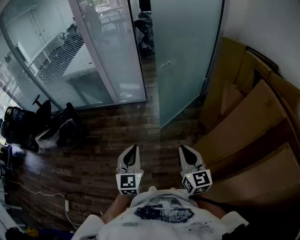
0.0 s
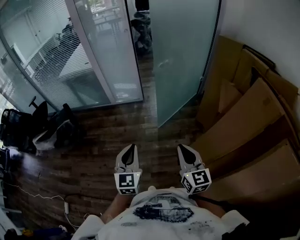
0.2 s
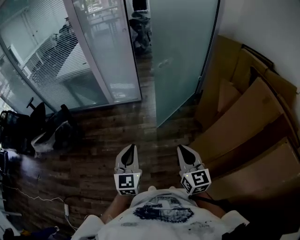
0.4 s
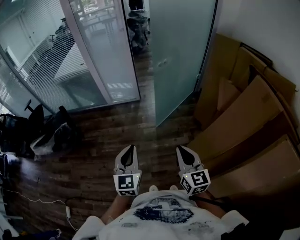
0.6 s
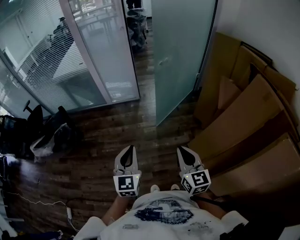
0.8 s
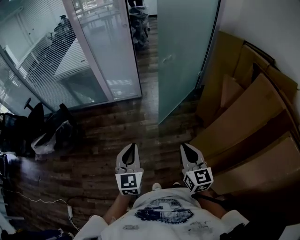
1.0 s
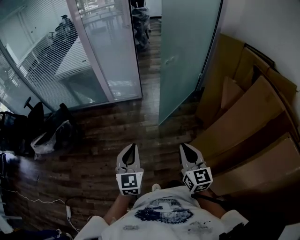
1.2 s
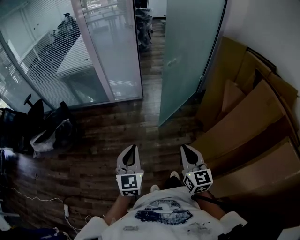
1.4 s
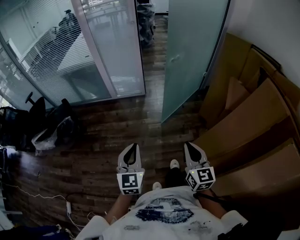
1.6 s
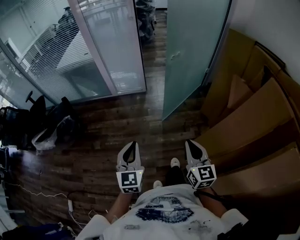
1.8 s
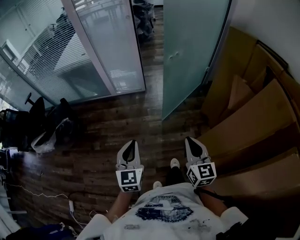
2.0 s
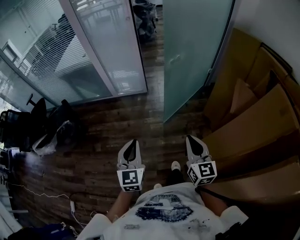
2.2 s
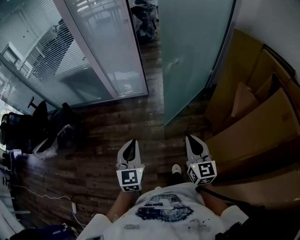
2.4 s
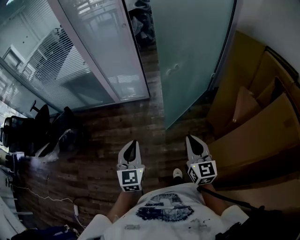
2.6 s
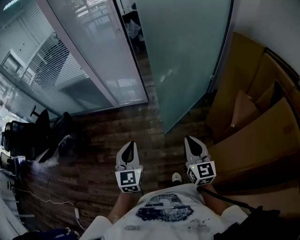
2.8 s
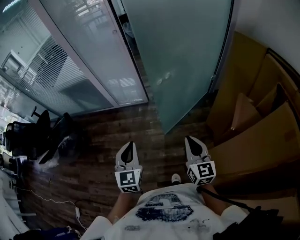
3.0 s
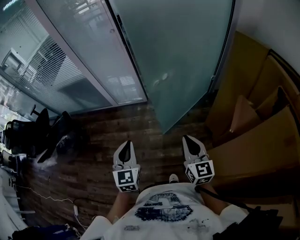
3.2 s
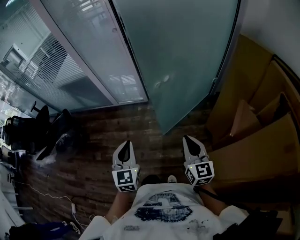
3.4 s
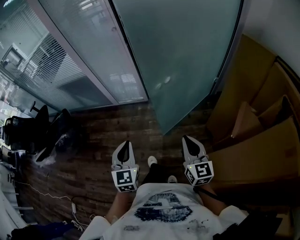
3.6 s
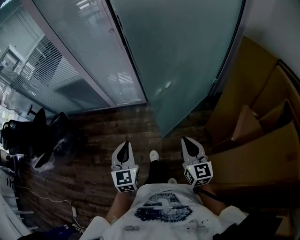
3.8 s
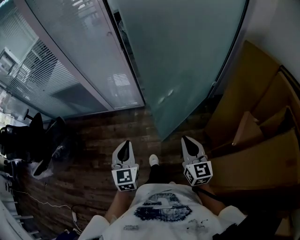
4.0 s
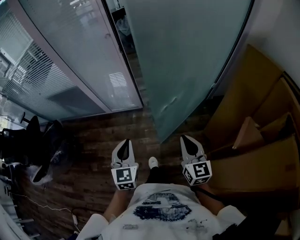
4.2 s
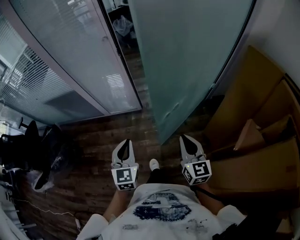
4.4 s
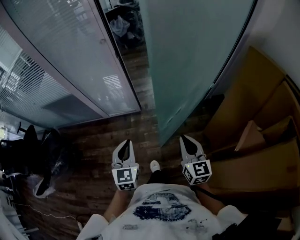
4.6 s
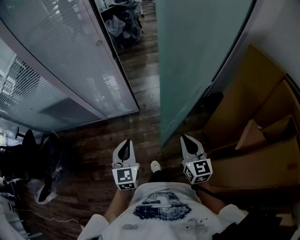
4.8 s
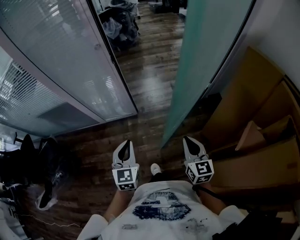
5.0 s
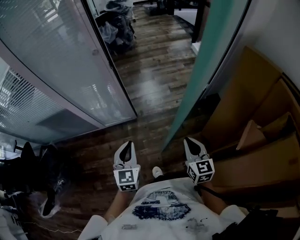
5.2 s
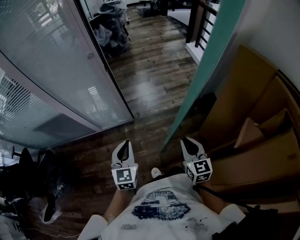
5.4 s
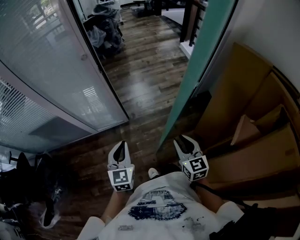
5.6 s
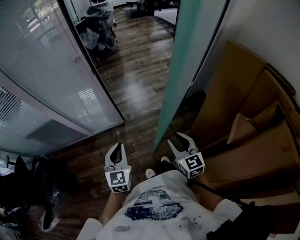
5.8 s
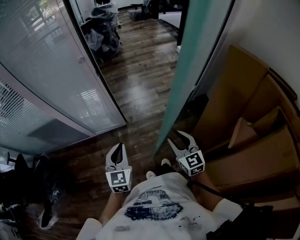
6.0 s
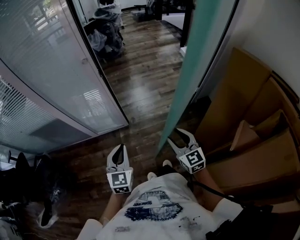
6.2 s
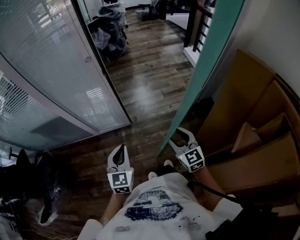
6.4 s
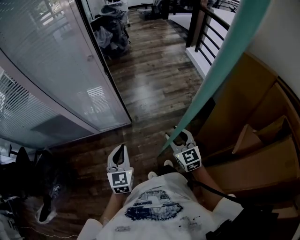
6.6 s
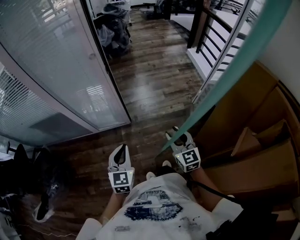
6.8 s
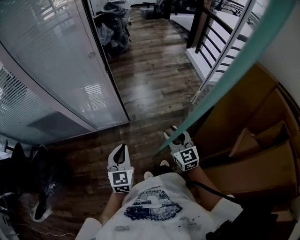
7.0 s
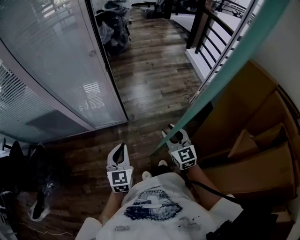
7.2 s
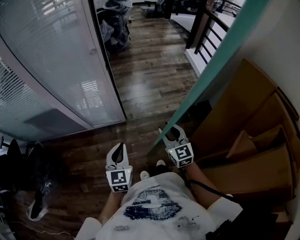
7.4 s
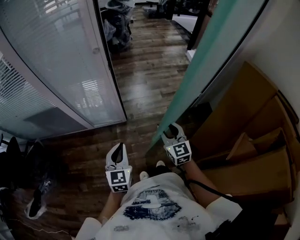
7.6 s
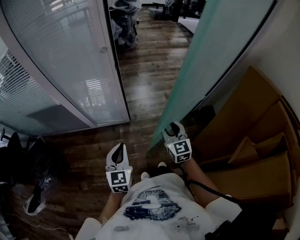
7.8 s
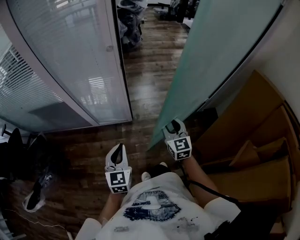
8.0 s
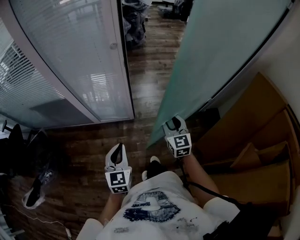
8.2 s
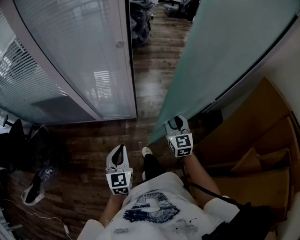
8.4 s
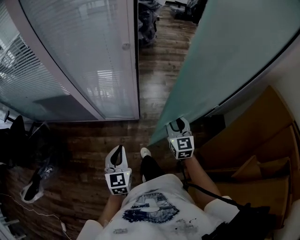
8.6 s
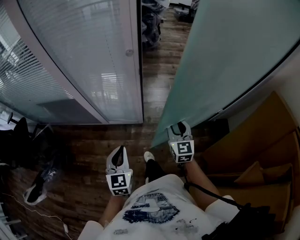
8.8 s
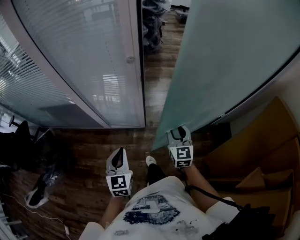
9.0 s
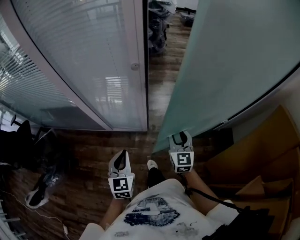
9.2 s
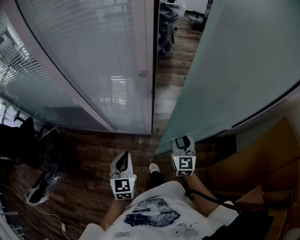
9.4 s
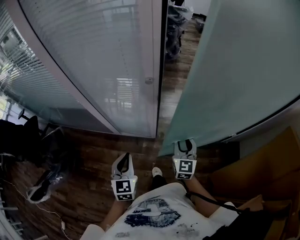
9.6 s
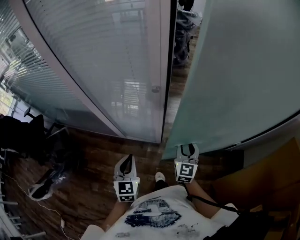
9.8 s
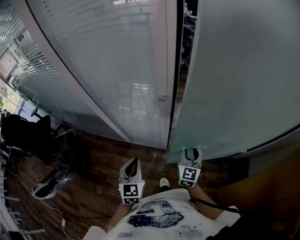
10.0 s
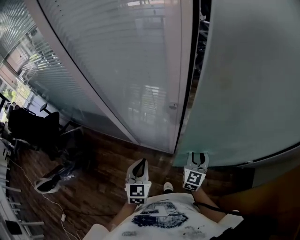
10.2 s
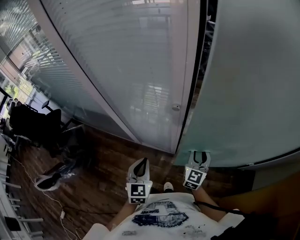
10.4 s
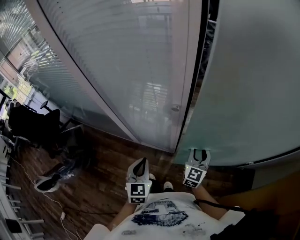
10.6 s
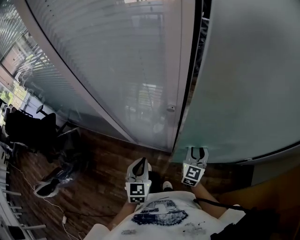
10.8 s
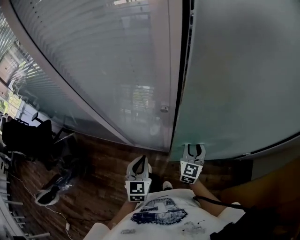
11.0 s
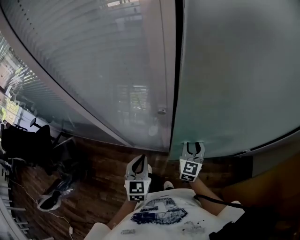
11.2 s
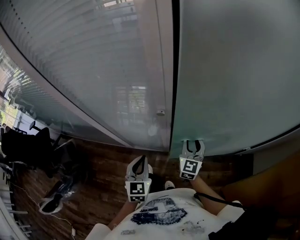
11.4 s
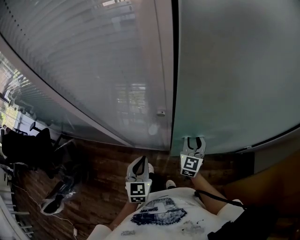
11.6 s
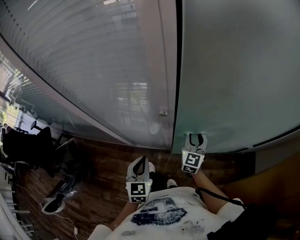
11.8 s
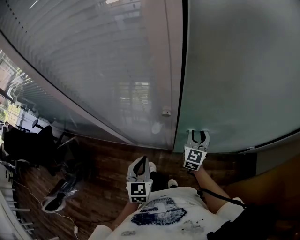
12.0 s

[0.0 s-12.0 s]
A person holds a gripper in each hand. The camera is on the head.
0.0 to 1.6 s: The two grippers go roughly 5 cm to the left.
1.6 to 3.0 s: Both grippers move forward and to the right, approximately 25 cm.
3.0 to 4.4 s: The grippers both shift forward by approximately 20 cm.
4.4 to 6.0 s: The two grippers go some 10 cm forward. The right gripper opens.
6.0 to 7.6 s: The right gripper moves forward and to the left, some 10 cm.
7.6 to 9.0 s: The right gripper goes some 15 cm forward and to the left. The left gripper shifts about 10 cm to the left and forward.
9.0 to 10.4 s: The grippers both shift forward by about 15 cm.
10.4 to 12.0 s: The left gripper is displaced forward by roughly 5 cm; the right gripper moves forward, some 10 cm.

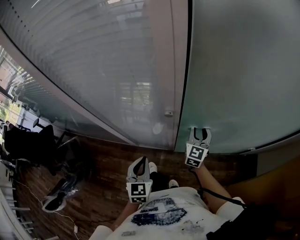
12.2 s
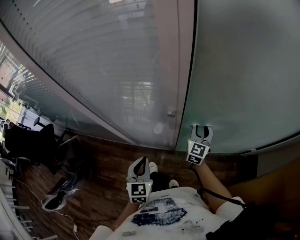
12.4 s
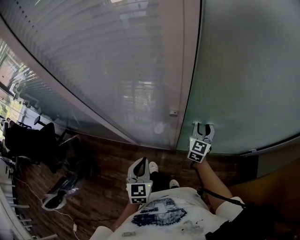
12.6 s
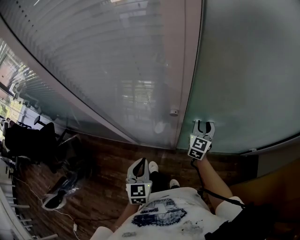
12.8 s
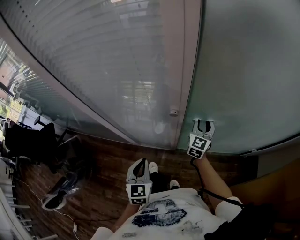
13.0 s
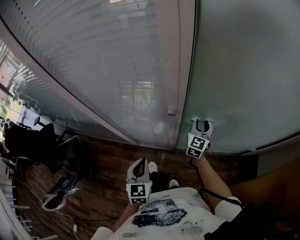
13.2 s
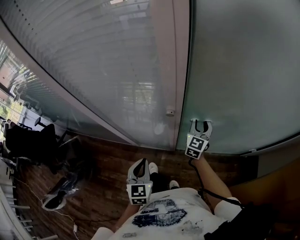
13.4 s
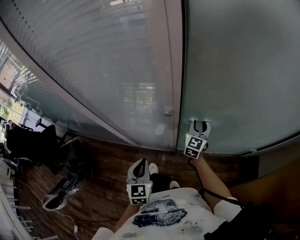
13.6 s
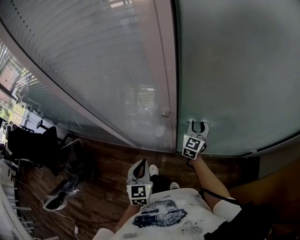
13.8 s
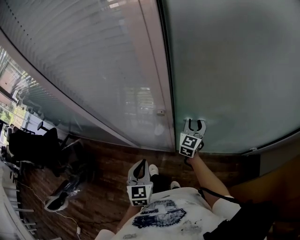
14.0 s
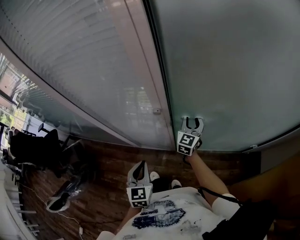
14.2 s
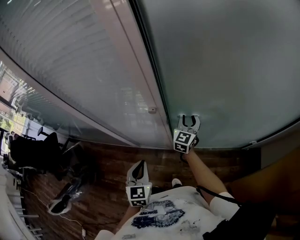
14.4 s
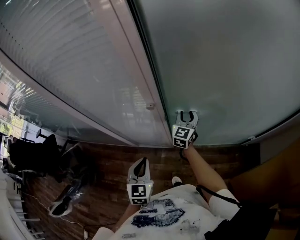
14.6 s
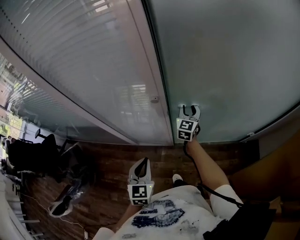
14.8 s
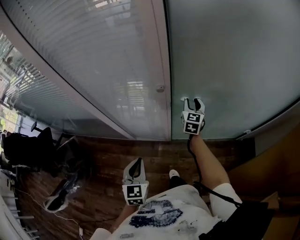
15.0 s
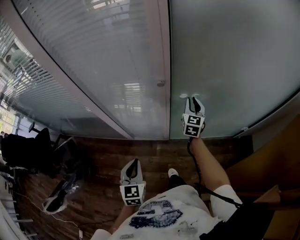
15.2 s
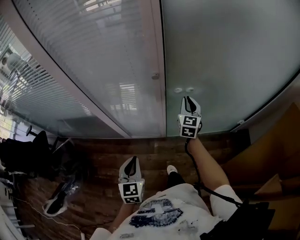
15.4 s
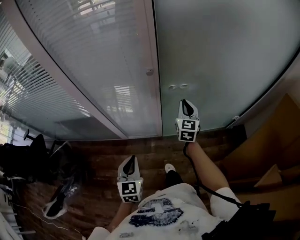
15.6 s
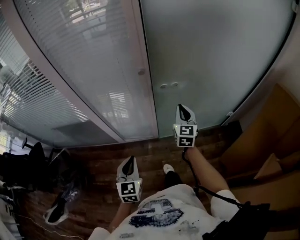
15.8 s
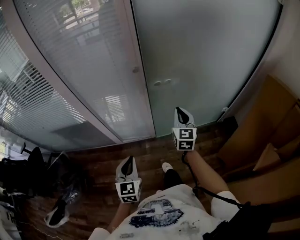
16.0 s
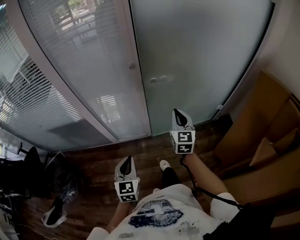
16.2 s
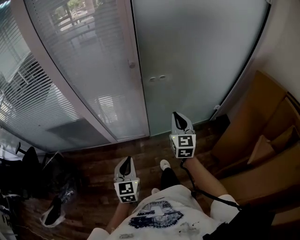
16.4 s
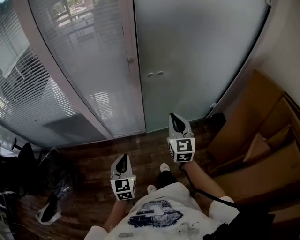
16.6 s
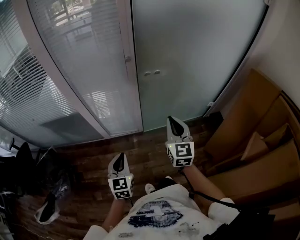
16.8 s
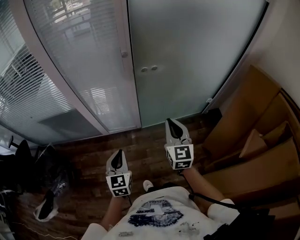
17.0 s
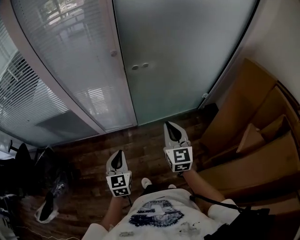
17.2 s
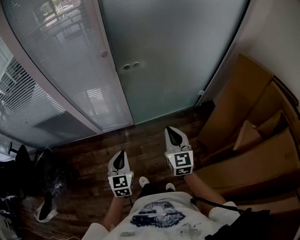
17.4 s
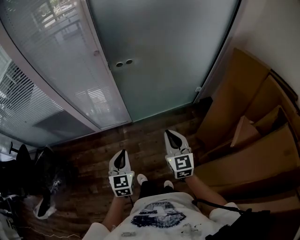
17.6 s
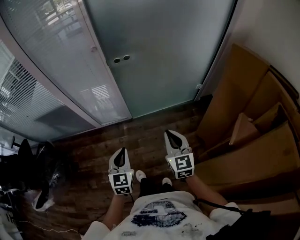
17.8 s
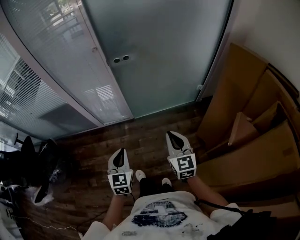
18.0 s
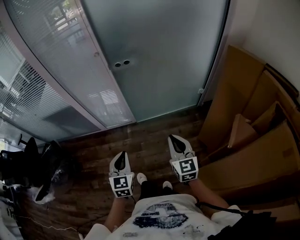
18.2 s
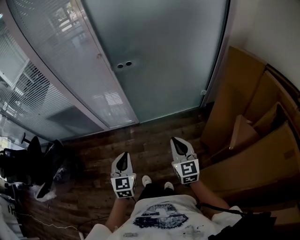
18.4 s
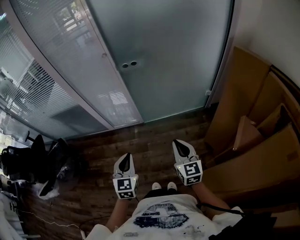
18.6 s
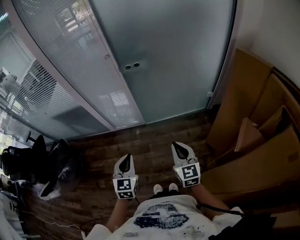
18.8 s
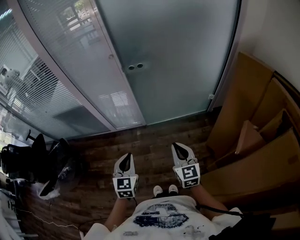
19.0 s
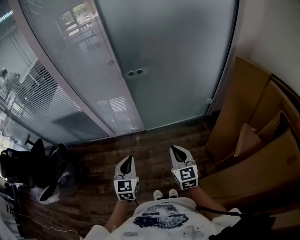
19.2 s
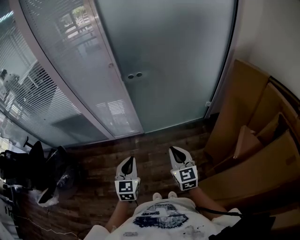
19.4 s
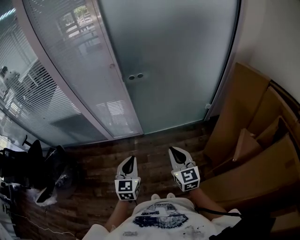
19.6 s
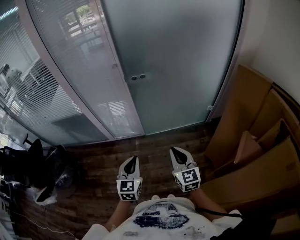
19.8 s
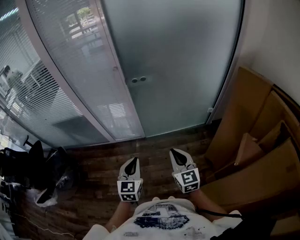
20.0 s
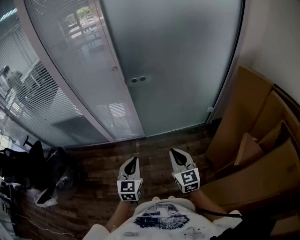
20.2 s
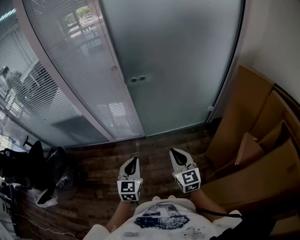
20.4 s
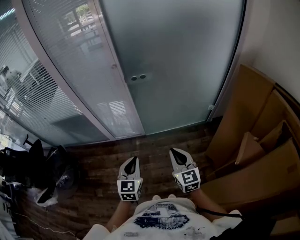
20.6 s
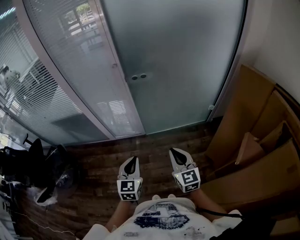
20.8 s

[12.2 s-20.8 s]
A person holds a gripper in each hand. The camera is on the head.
12.2 to 13.6 s: There are only small adjustments of the grippers.
13.6 to 15.0 s: The left gripper is displaced backward by approximately 10 cm.
15.0 to 16.6 s: The right gripper is displaced backward by approximately 35 cm, and closes; the left gripper is displaced backward by some 15 cm.
16.6 to 18.0 s: The left gripper goes some 20 cm to the right and backward. The right gripper heads backward and to the right, covering some 25 cm.
18.0 to 20.8 s: The grippers move only a little.

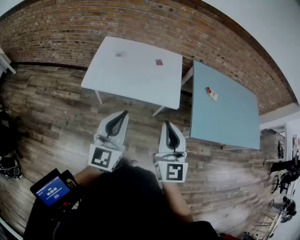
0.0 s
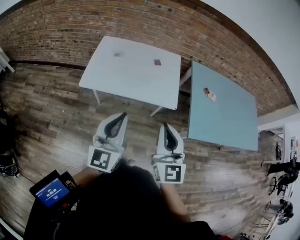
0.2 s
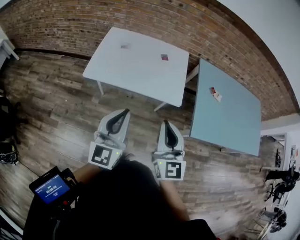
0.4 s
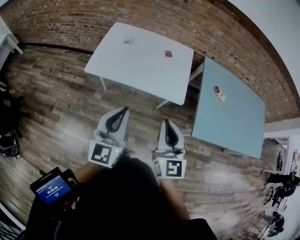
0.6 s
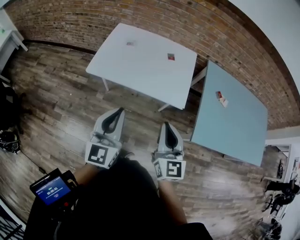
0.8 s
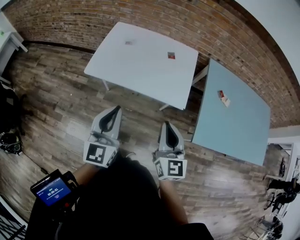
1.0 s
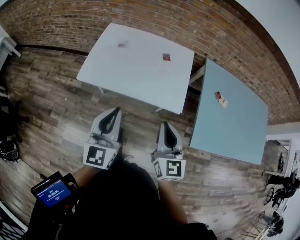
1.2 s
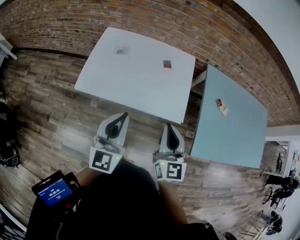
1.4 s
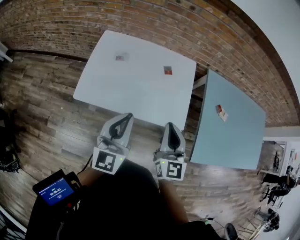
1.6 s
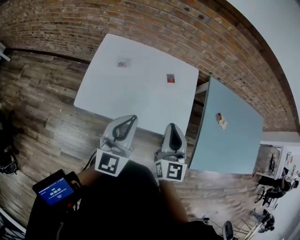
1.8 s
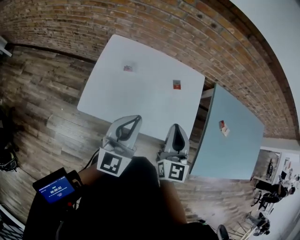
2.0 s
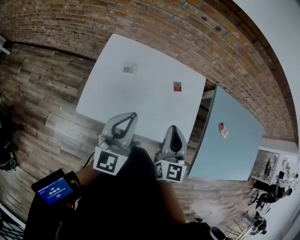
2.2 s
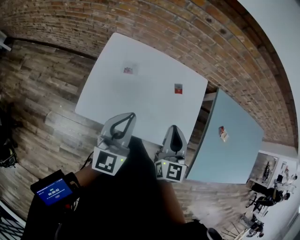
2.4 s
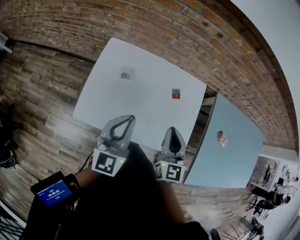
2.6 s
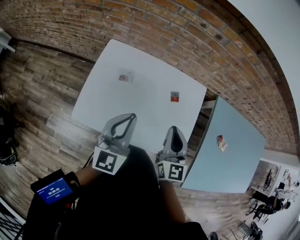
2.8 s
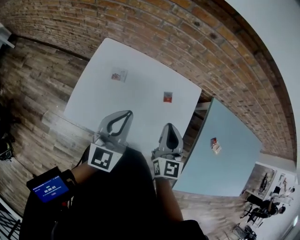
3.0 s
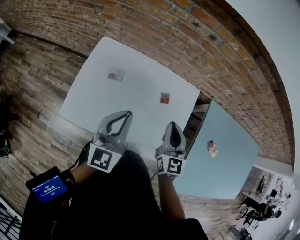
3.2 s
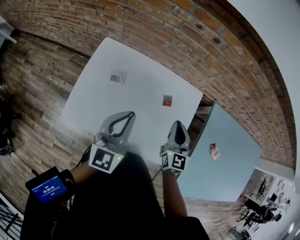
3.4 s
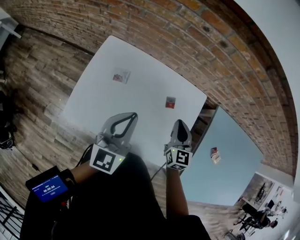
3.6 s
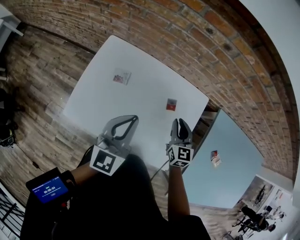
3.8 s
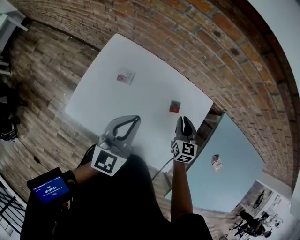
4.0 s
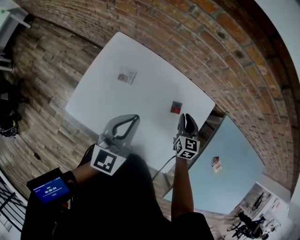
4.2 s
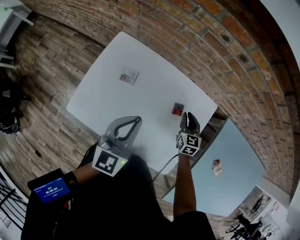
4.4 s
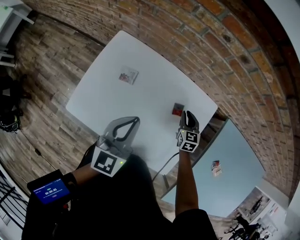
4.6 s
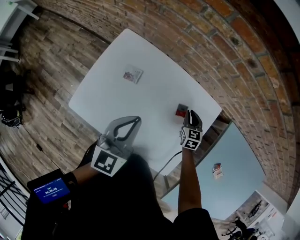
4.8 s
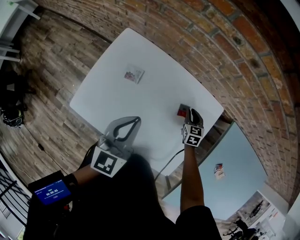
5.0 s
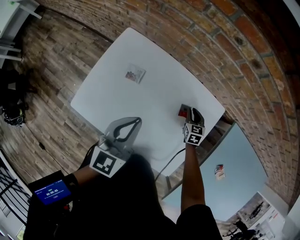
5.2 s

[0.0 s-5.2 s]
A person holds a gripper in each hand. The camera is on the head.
0.0 to 1.8 s: The grippers both shift forward by roughly 25 cm.
1.8 to 3.4 s: The two grippers go about 20 cm forward.
3.4 to 5.2 s: The left gripper shifts about 5 cm downward. The right gripper shifts roughly 30 cm downward and forward, and changes its angle by some 30 degrees.
